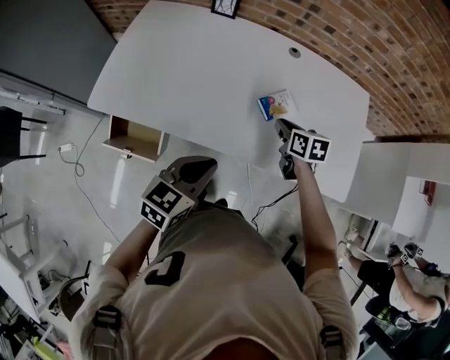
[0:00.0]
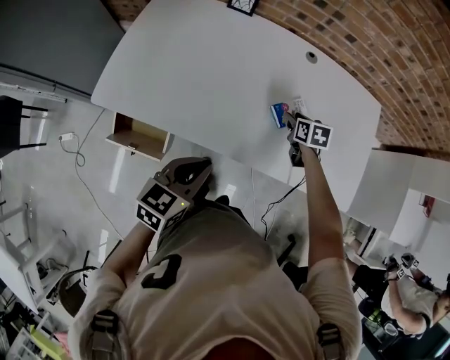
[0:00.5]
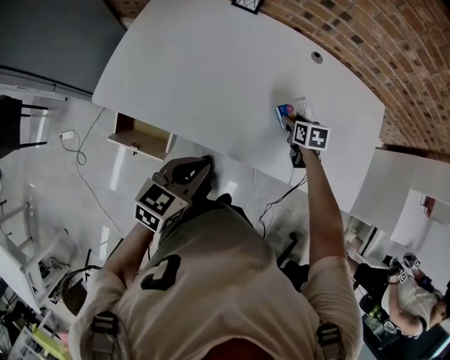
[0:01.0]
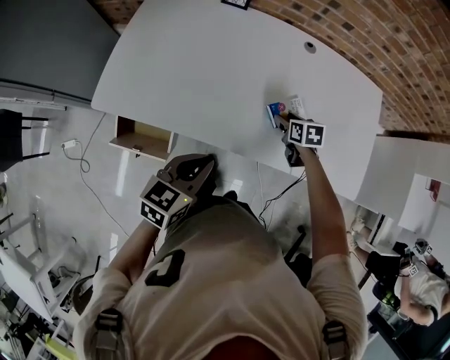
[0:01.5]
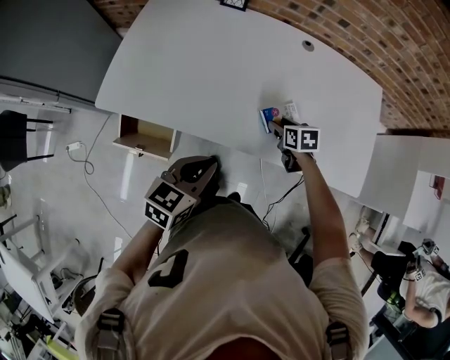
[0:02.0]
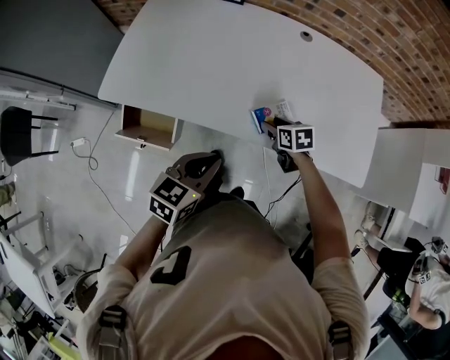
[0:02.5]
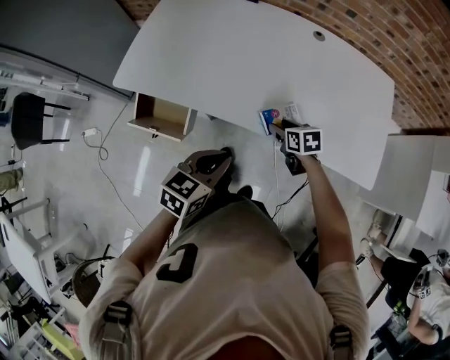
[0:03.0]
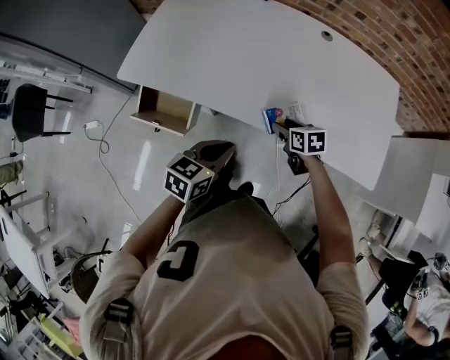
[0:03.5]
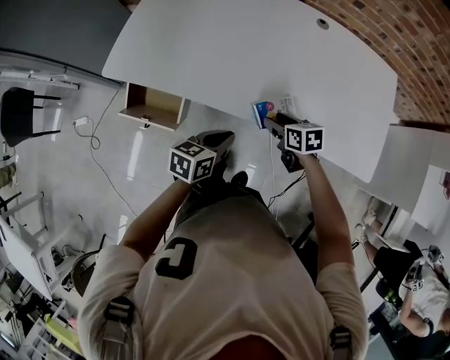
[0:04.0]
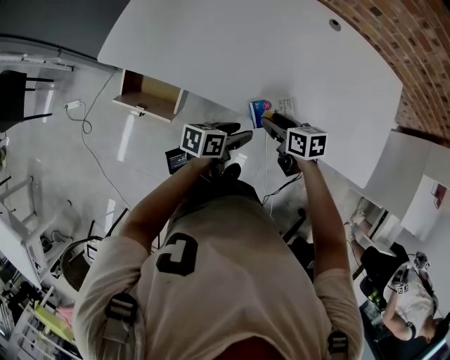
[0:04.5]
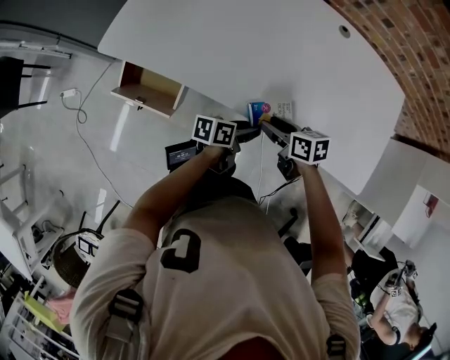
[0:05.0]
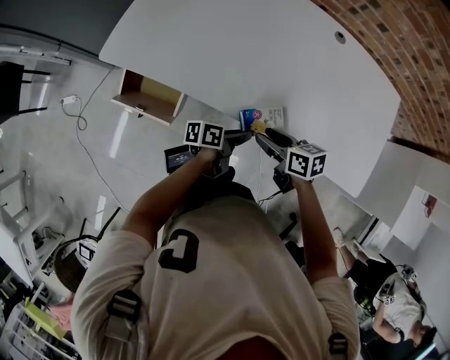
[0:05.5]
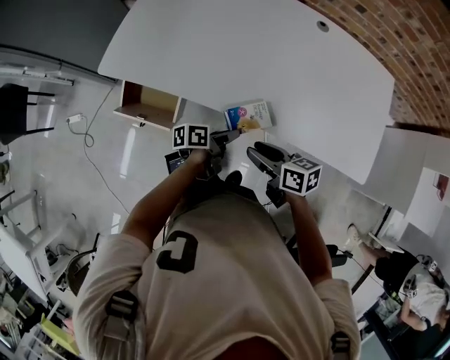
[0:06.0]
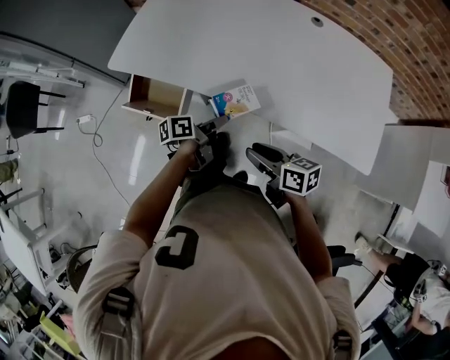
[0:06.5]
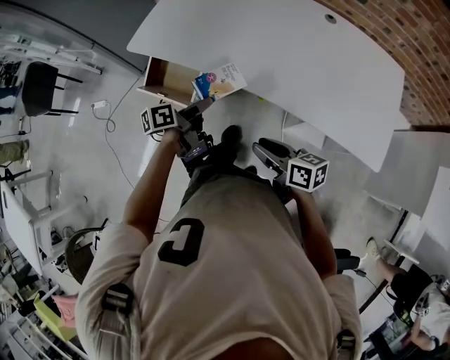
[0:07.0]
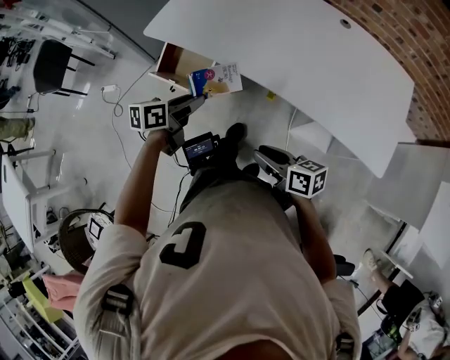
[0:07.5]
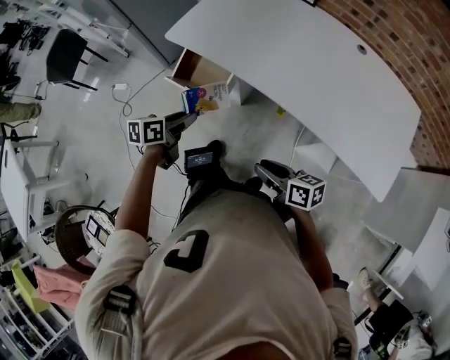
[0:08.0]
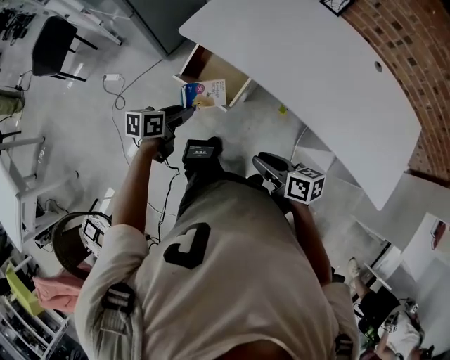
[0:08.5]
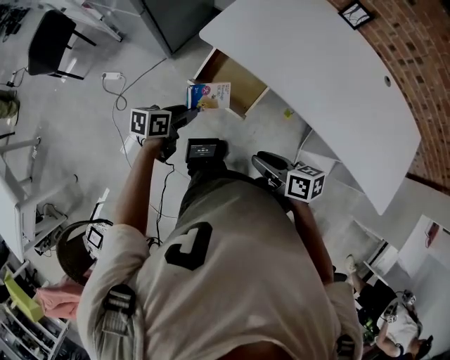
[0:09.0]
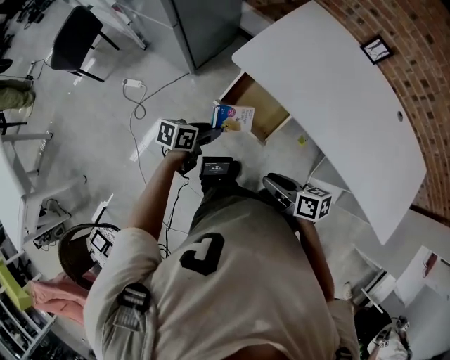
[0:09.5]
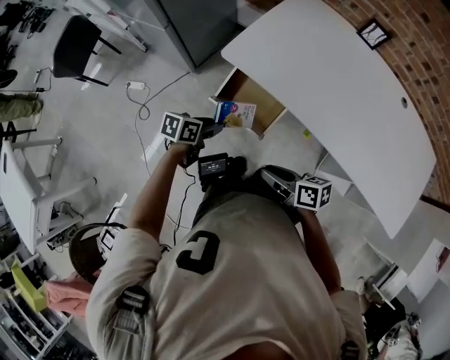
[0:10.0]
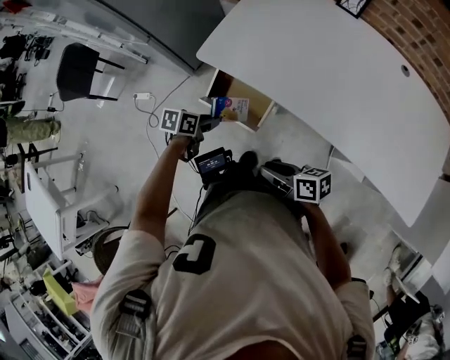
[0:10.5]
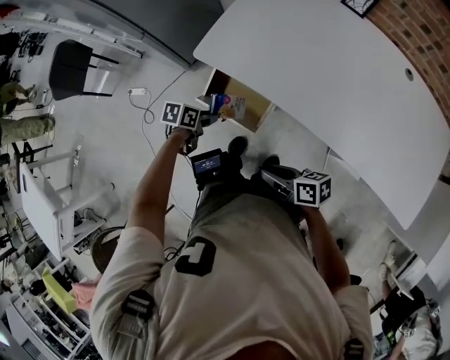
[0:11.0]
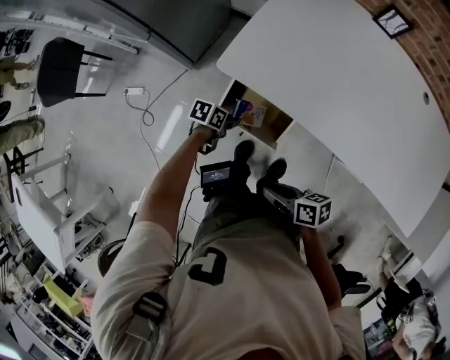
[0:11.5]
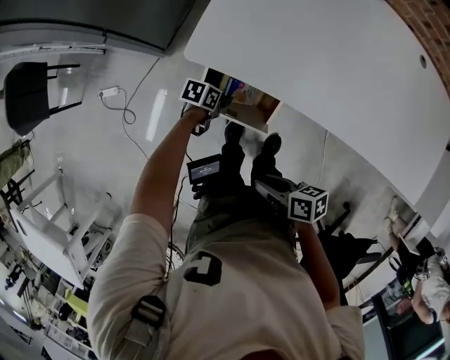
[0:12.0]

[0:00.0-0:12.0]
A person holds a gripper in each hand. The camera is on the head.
0.0 to 2.0 s: The left gripper goes approximately 5 cm to the left, while the right gripper travels downward by about 10 cm, and opens its fingers.
2.0 to 4.0 s: The right gripper is displaced backward by roughly 10 cm. The left gripper heads downward, covering roughly 10 cm.
4.0 to 6.0 s: The left gripper heads downward, covering roughly 10 cm, twists approximately 40 degrees counterclockwise, seen from behind, and opens and closes again. Meanwhile the right gripper moves backward, upward and to the left, approximately 15 cm, and changes its angle by some 20 degrees.
6.0 to 8.0 s: The right gripper moves backward, approximately 15 cm; the left gripper heads to the left and upward, covering about 25 cm, and turns by roughly 40 degrees.
8.0 to 10.0 s: The right gripper moves about 30 cm. Meanwhile the left gripper shifts by about 25 cm.
10.0 to 12.0 s: The left gripper moves downward, approximately 15 cm, and turns by some 30 degrees. The right gripper shifts by roughly 5 cm, and swivels approximately 20 degrees.

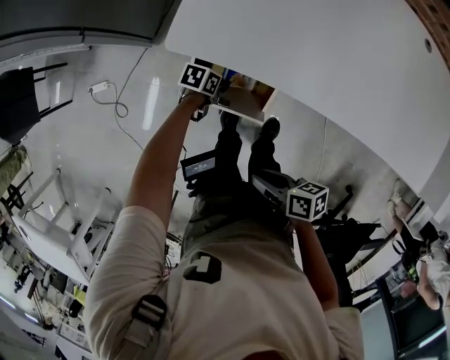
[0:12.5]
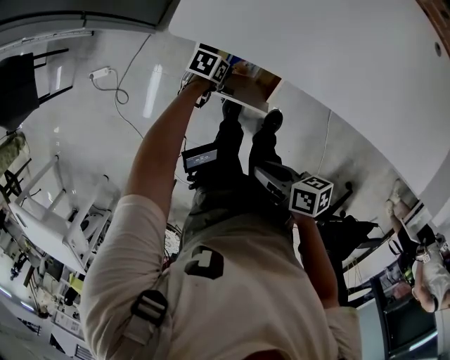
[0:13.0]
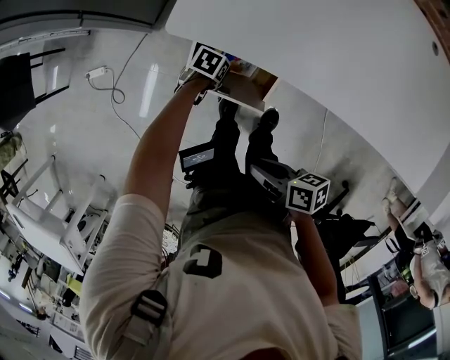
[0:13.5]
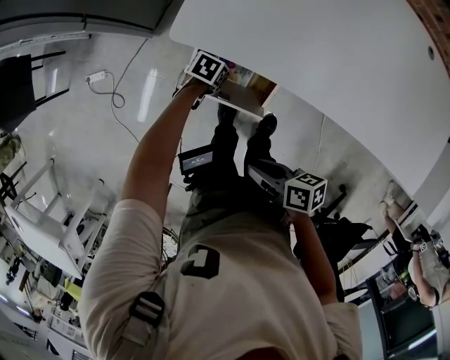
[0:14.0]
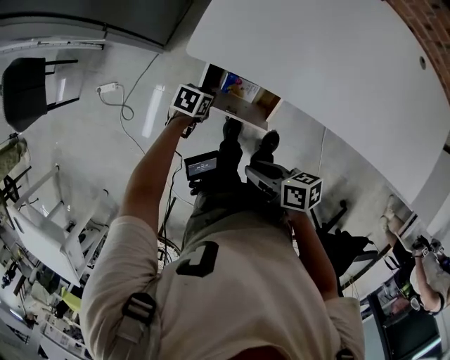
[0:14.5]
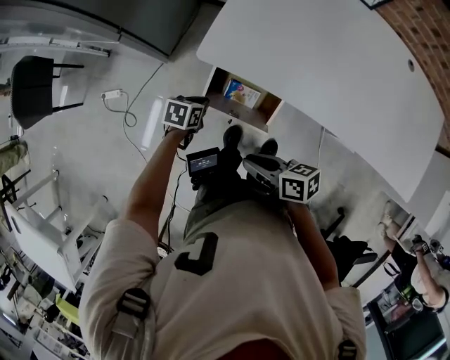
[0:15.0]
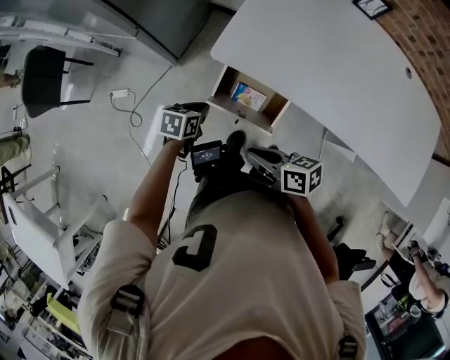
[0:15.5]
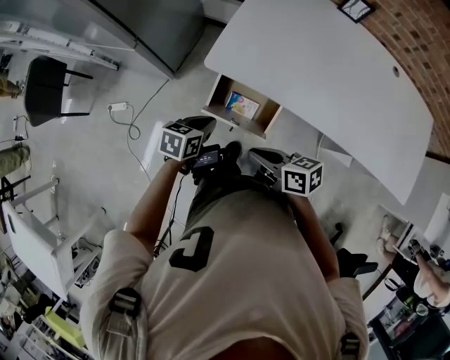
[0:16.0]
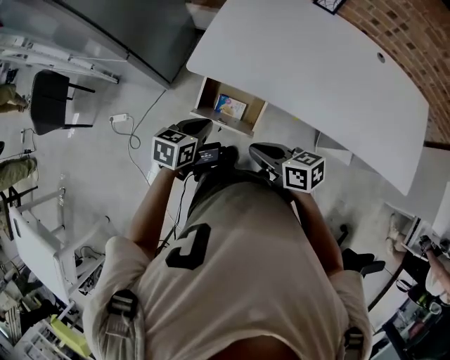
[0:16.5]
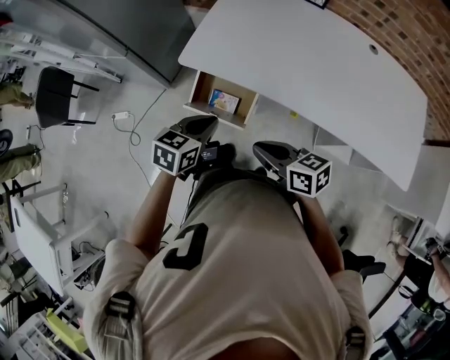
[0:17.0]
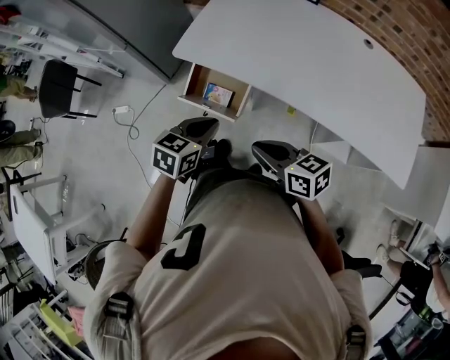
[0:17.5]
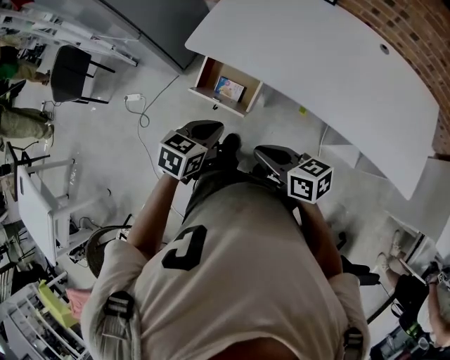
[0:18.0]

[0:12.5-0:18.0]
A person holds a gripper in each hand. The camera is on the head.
12.5 to 14.5 s: The left gripper shifts by some 10 cm, and opens and closes again. Meanwhile the right gripper shifts by approximately 5 cm.
14.5 to 16.0 s: The right gripper shifts some 5 cm upward. Meanwhile the left gripper shifts some 20 cm upward, and rotates some 20 degrees.
16.0 to 18.0 s: The left gripper shifts some 25 cm backward, to the right and upward, while the right gripper moves to the right, backward and upward, approximately 20 cm.

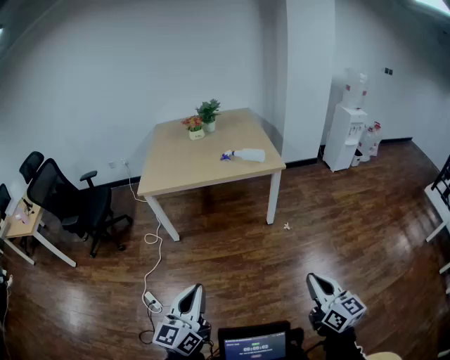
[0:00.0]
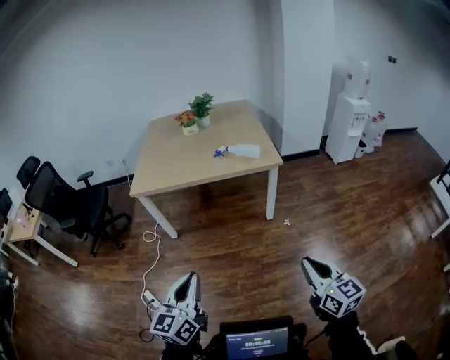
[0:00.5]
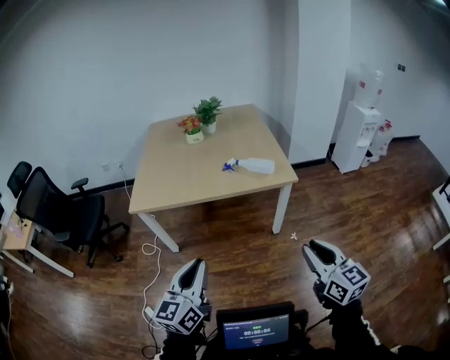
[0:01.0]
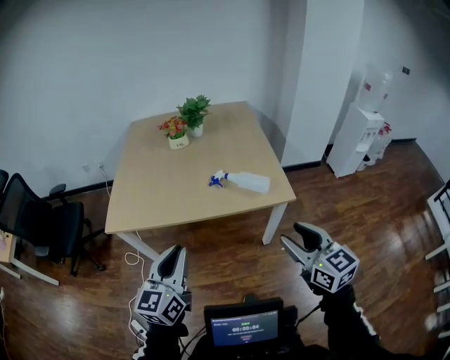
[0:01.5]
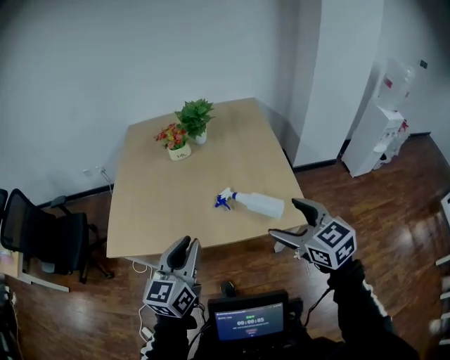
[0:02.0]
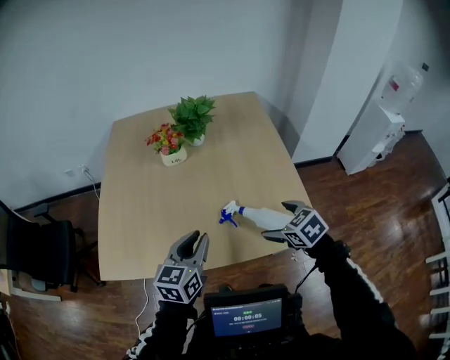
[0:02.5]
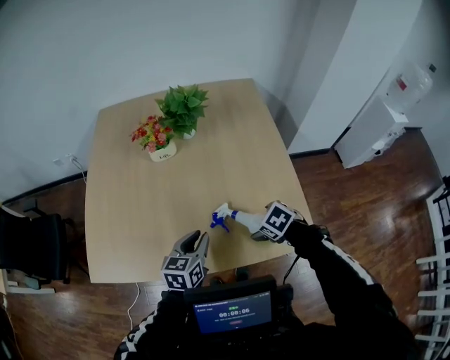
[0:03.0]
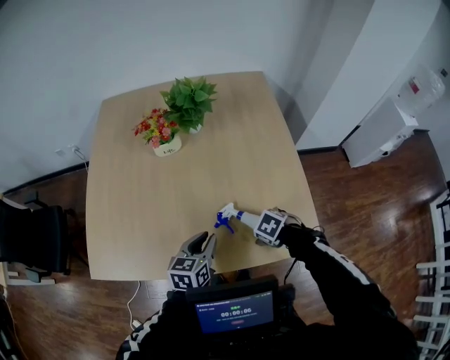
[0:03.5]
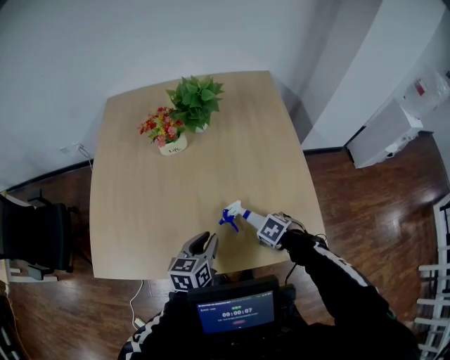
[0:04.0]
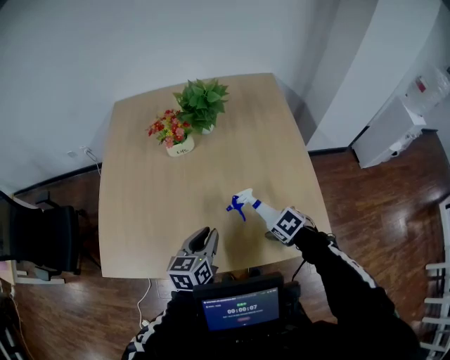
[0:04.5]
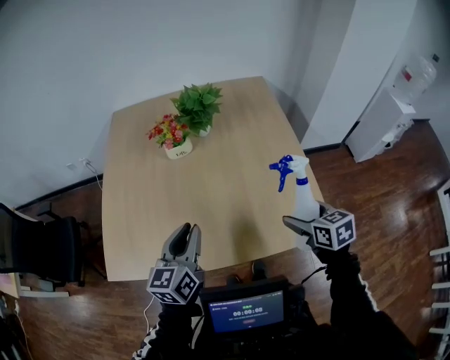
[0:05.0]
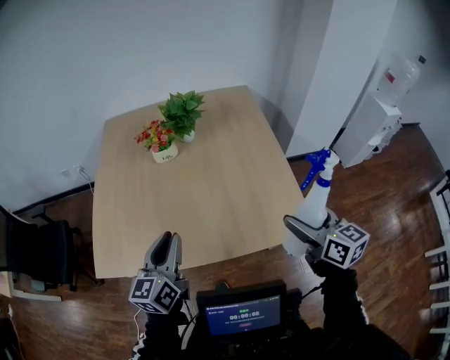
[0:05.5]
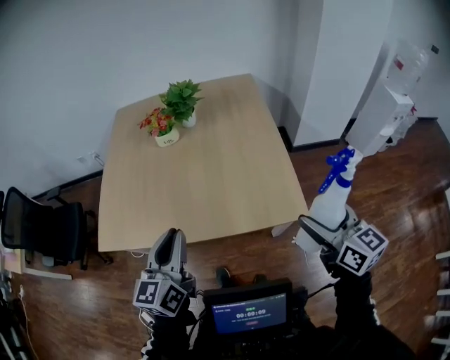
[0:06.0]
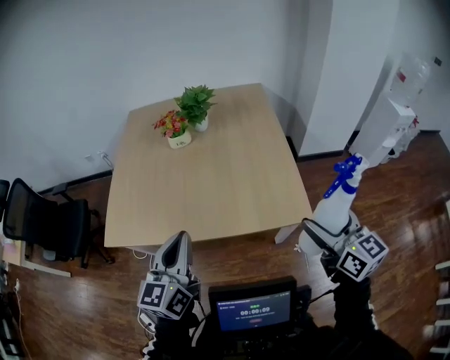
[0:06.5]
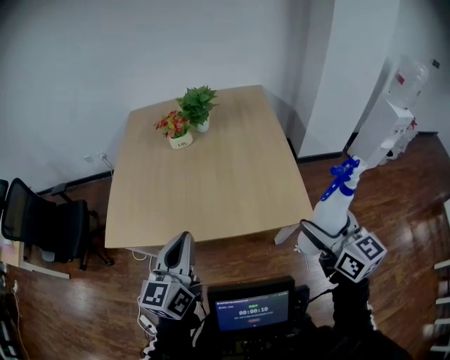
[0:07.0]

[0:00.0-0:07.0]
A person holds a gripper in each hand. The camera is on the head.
0.0 to 2.0 s: Both grippers are carried forward, approximately 90 cm. The left gripper opens. Meanwhile the right gripper swivels some 30 degrees, and opens its fingers.
2.0 to 3.5 s: The left gripper ends up roughly 35 cm from where it was, and swivels roughly 30 degrees, while the right gripper heads downward, covering approximately 35 cm, and tips its fingers downward by approximately 60 degrees.
3.5 to 5.0 s: Both grippers travel together upward, roughly 15 cm. The right gripper tips its fingers upward by some 50 degrees; the left gripper changes its angle by approximately 20 degrees.
5.0 to 7.0 s: The right gripper travels backward and upward by about 30 cm, and points its fingers approximately 30 degrees further upward, while the left gripper heads backward, covering roughly 25 cm, and closes.

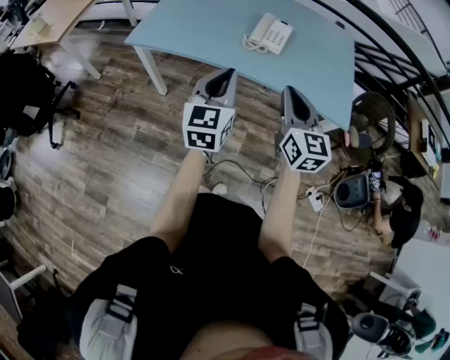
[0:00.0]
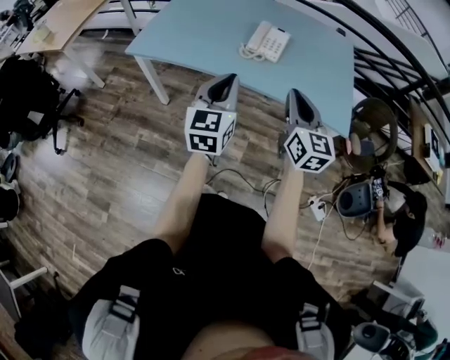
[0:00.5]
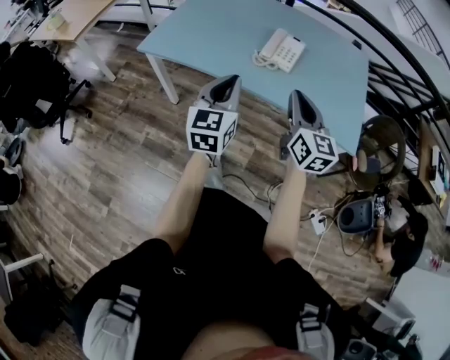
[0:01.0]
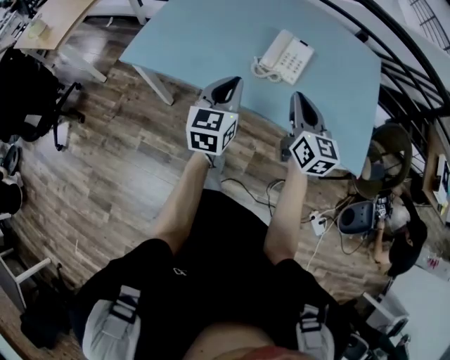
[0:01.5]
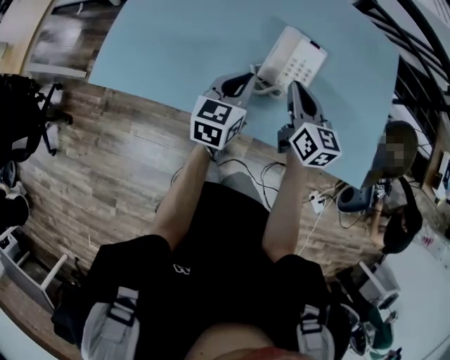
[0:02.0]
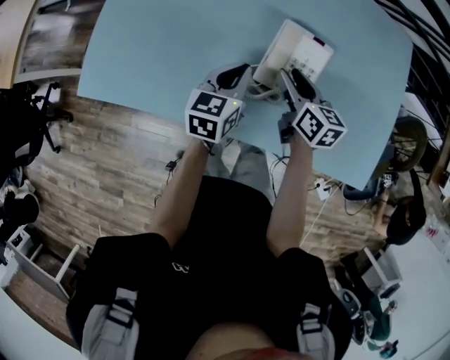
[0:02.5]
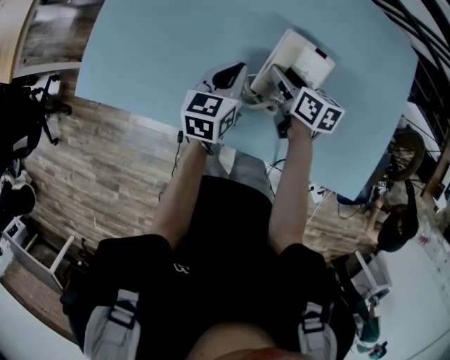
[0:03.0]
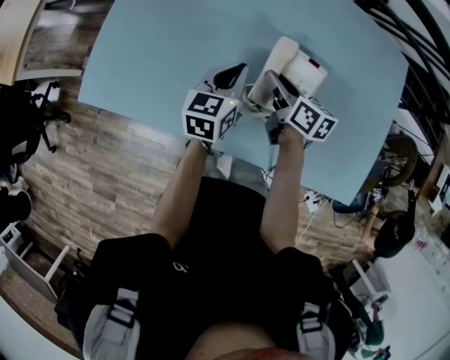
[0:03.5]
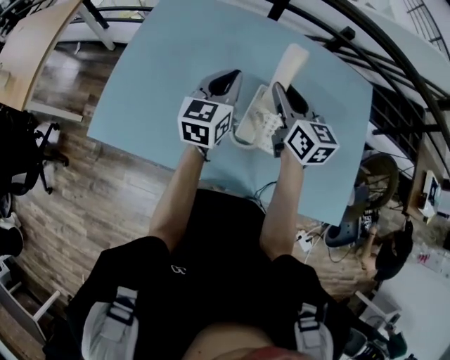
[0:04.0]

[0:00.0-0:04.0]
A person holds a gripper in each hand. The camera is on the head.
0.0 to 2.0 s: The right gripper moves forward, approximately 40 cm, and changes its angle by about 20 degrees, while the left gripper shifts roughly 40 cm forward and downward, and rotates about 30 degrees.
2.0 to 4.0 s: The grippers both shift forward and upward by roughly 20 cm. The right gripper opens, then closes again.
